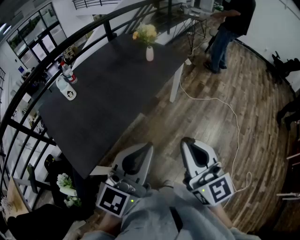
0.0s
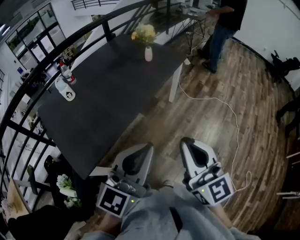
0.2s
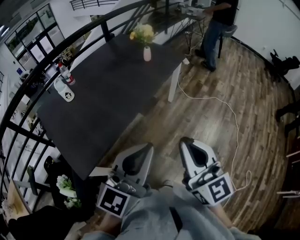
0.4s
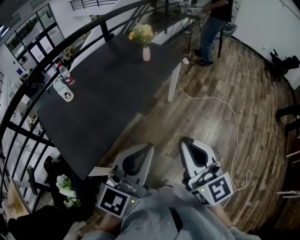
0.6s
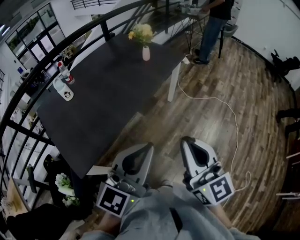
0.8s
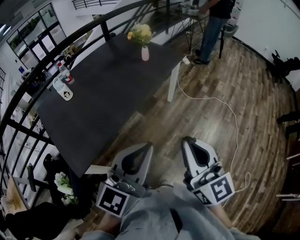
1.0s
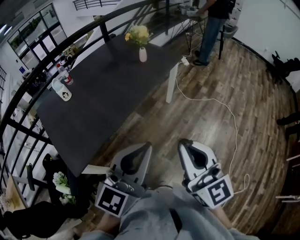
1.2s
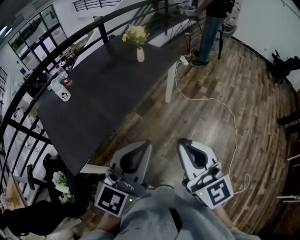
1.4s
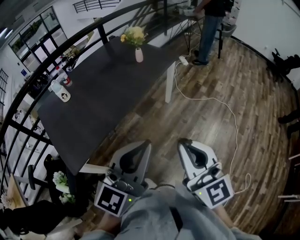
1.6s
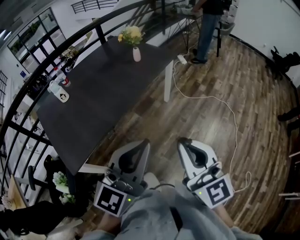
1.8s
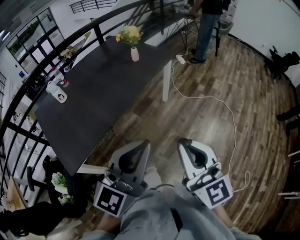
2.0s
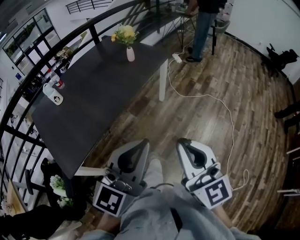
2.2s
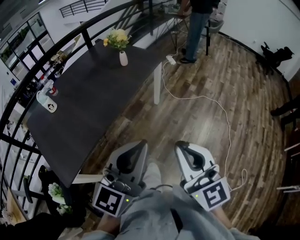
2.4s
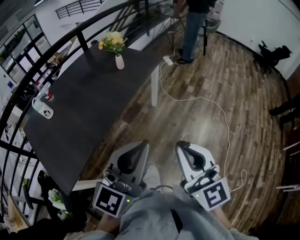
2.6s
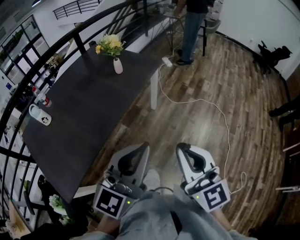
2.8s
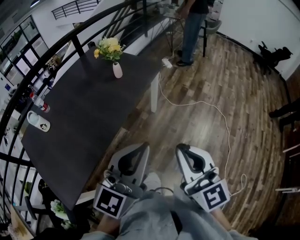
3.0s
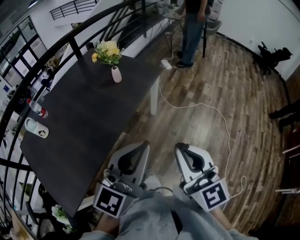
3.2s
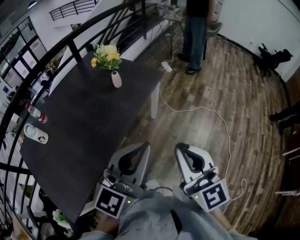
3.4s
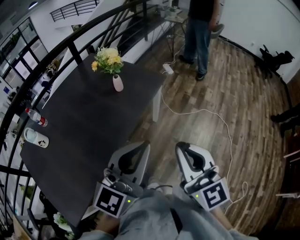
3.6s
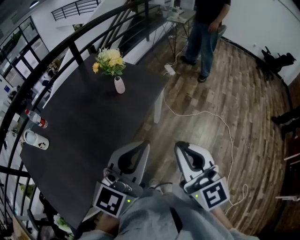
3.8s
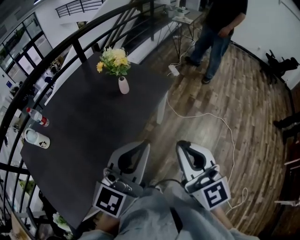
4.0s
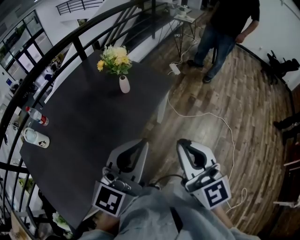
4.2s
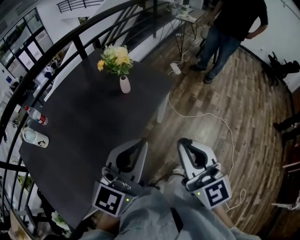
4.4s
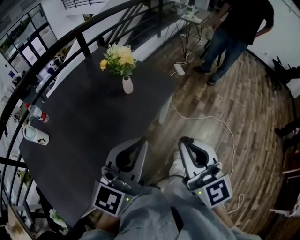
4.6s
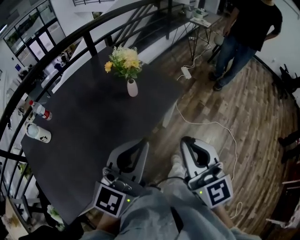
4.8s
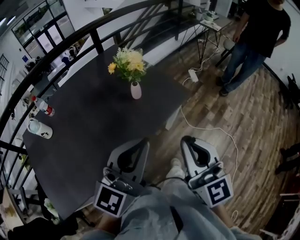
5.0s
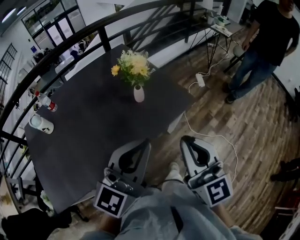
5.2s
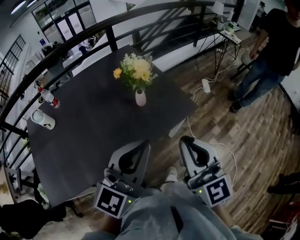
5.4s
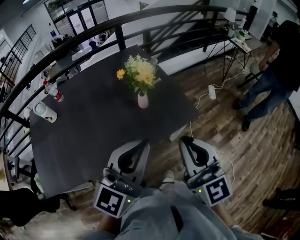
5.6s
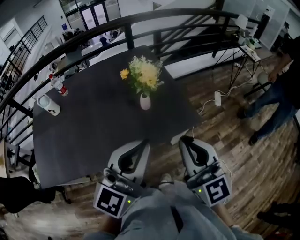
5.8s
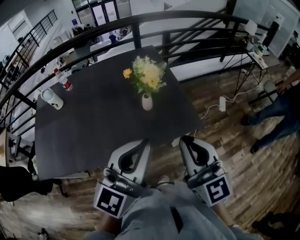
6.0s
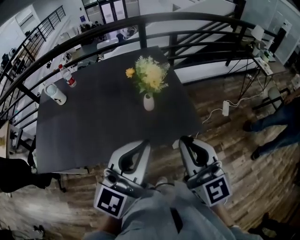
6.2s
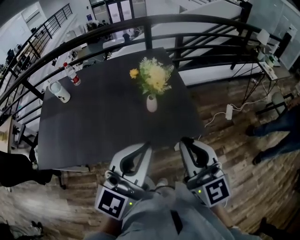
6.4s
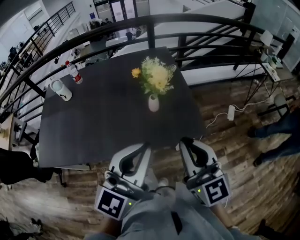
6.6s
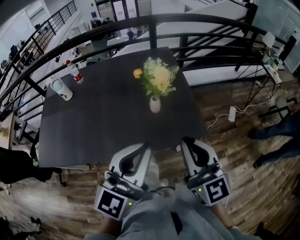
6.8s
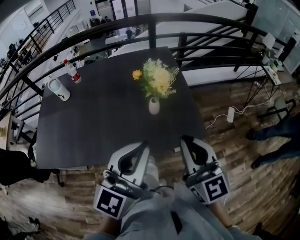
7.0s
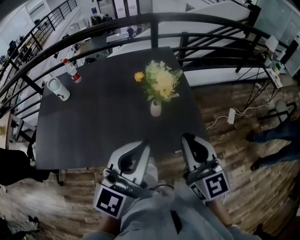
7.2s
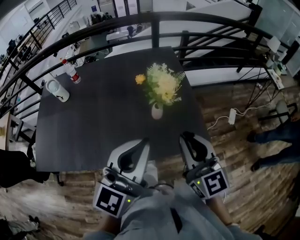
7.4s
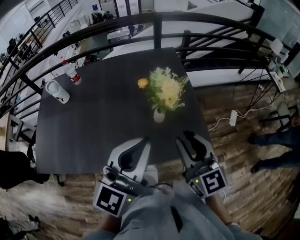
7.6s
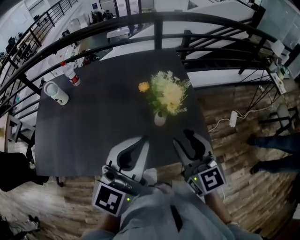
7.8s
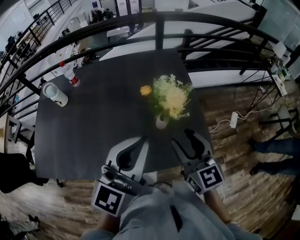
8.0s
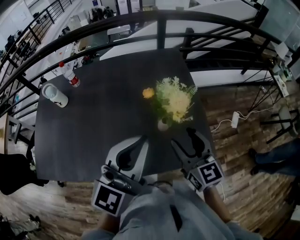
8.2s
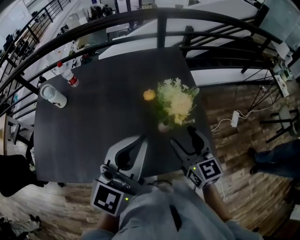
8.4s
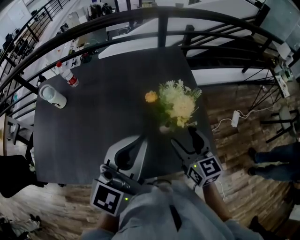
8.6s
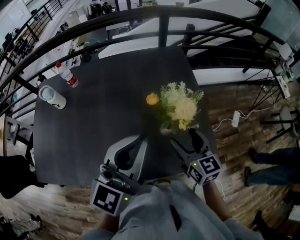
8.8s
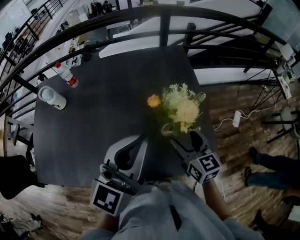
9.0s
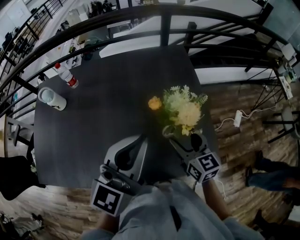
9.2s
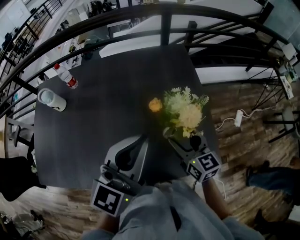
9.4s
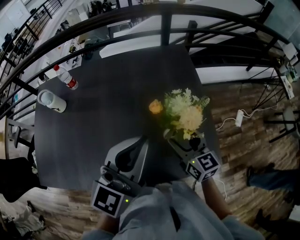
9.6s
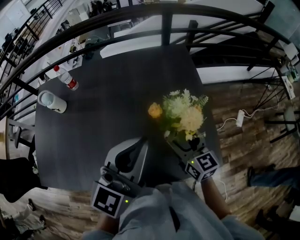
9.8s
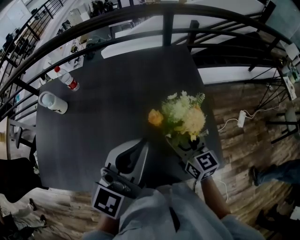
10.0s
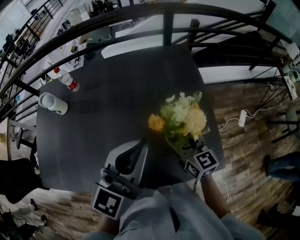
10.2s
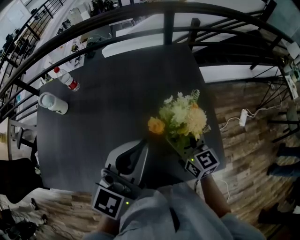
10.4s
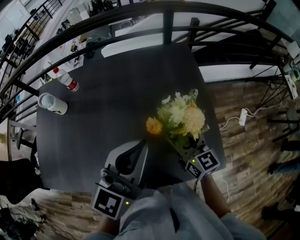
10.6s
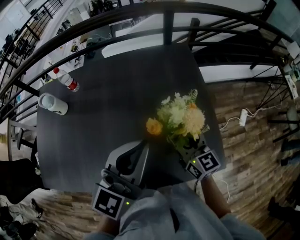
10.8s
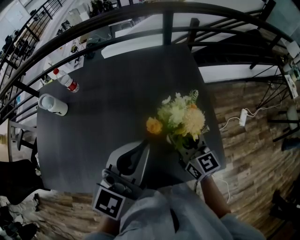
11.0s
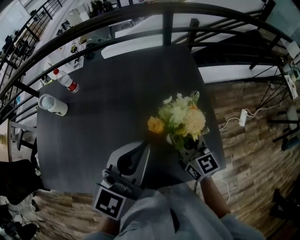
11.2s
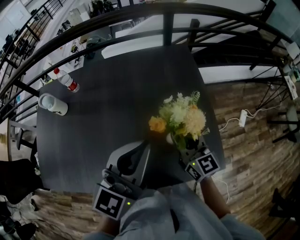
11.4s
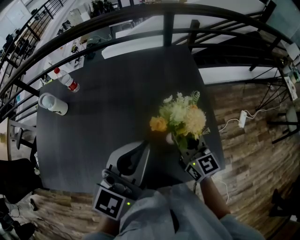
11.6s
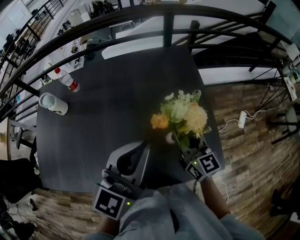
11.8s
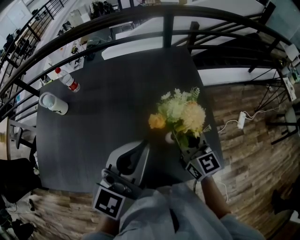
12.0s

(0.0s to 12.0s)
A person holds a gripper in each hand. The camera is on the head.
0.0s - 1.6s: The two grippers go some 10 cm to the right.
1.6s - 3.0s: Both grippers move forward, about 15 cm.
3.0s - 4.4s: Both grippers move forward, approximately 20 cm.
4.4s - 6.0s: The left gripper shifts by approximately 20 cm, and swivels about 40 degrees. Meanwhile the right gripper moves roughly 25 cm, and swivels some 40 degrees.
6.0s - 7.6s: The left gripper heads forward, covering approximately 10 cm, while the right gripper shifts about 15 cm forward and downward.
7.6s - 9.0s: The right gripper is displaced forward and downward by about 15 cm, changes its angle by approximately 20 degrees, and opens up, while the left gripper is displaced forward by about 10 cm.
9.0s - 10.4s: The right gripper moves forward, some 5 cm.
10.4s - 12.0s: The right gripper closes up.

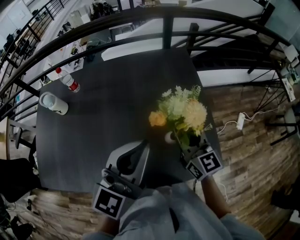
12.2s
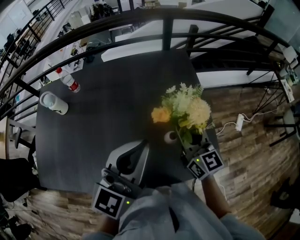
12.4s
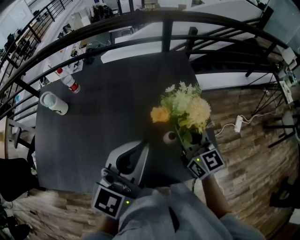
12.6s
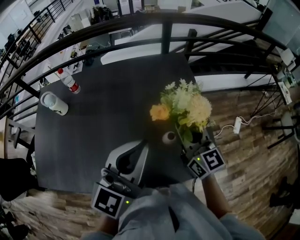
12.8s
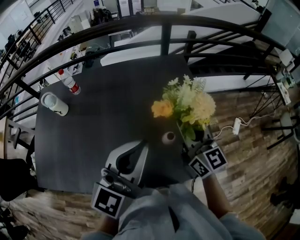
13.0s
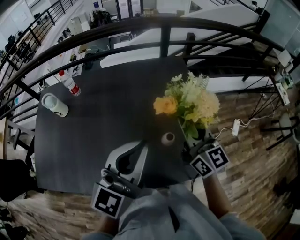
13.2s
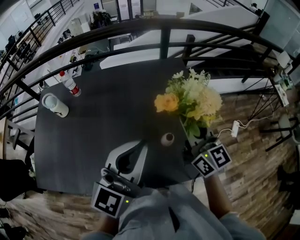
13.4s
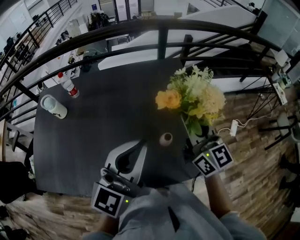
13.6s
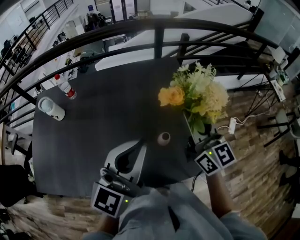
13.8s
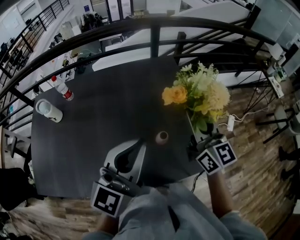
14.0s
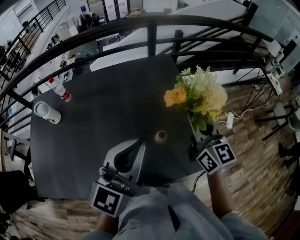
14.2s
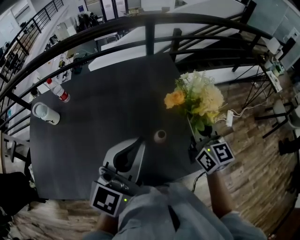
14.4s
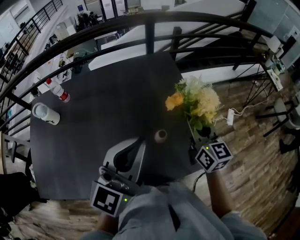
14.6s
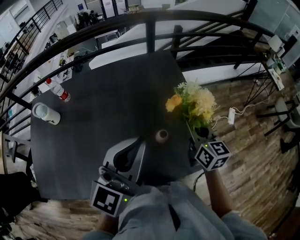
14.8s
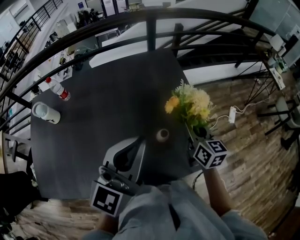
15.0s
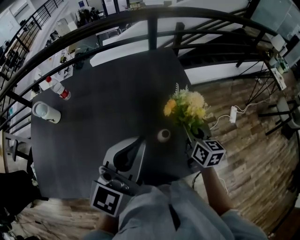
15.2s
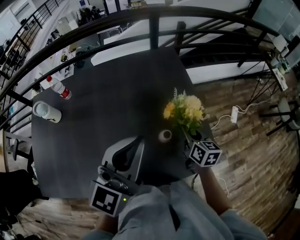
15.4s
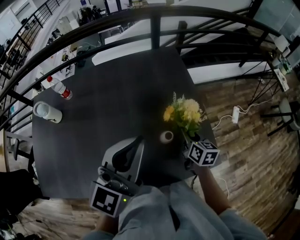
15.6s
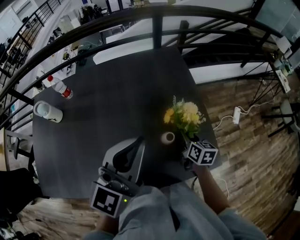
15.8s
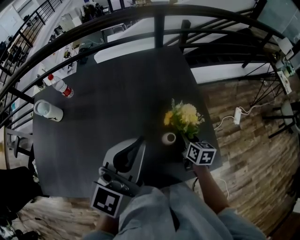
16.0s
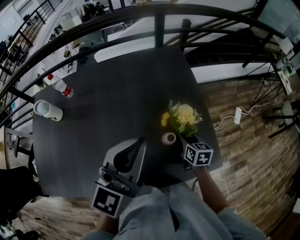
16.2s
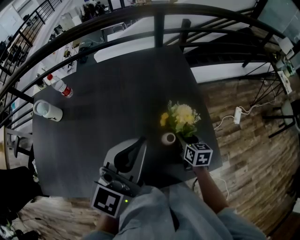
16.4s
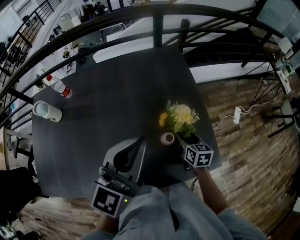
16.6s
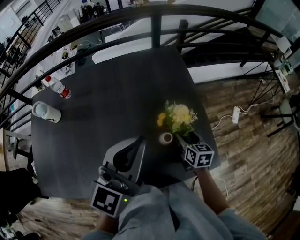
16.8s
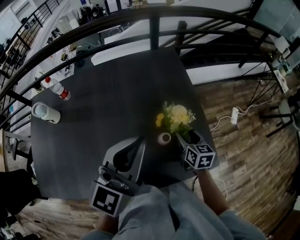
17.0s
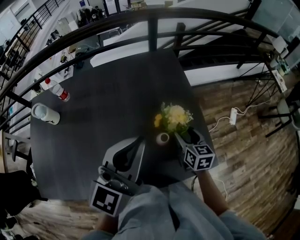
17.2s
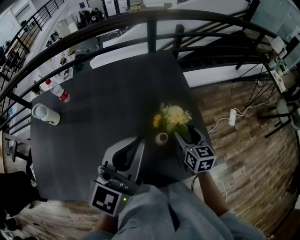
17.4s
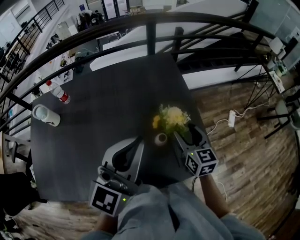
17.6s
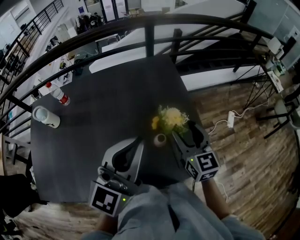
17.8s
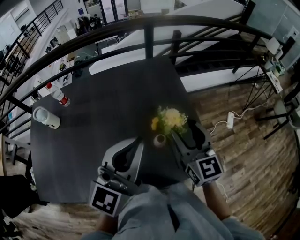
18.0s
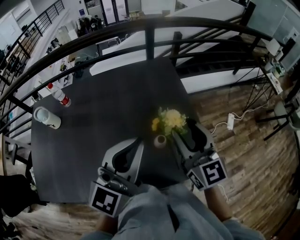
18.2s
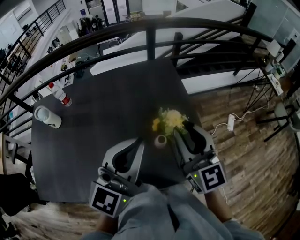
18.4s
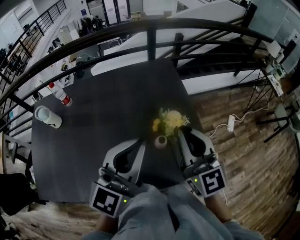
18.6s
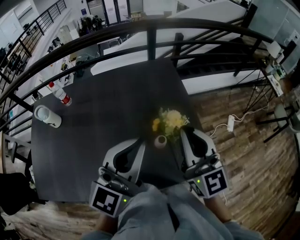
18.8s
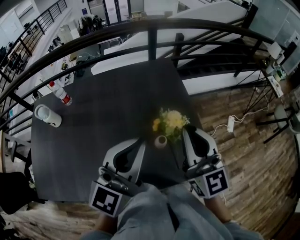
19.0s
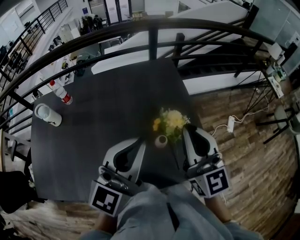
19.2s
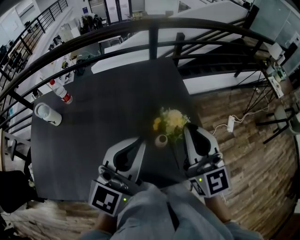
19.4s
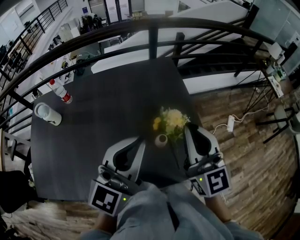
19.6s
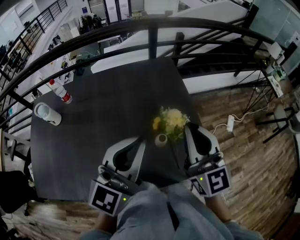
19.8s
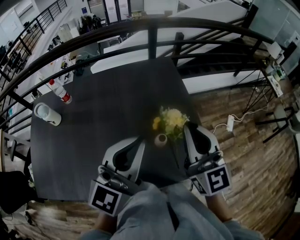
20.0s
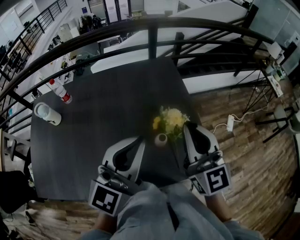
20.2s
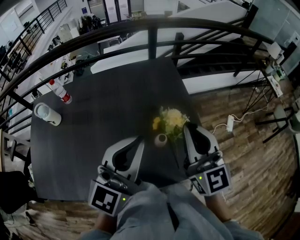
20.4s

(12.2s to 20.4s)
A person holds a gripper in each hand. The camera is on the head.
12.2s - 13.8s: The right gripper travels upward and to the right by approximately 15 cm.
13.8s - 15.4s: The right gripper travels downward by about 20 cm, and angles its fingers downward, by roughly 30 degrees.
15.4s - 17.2s: The right gripper moves some 10 cm downward and comes back, and opens.
17.2s - 18.8s: The right gripper moves upward, about 25 cm, points its fingers about 40 degrees further upward, and closes up.
18.8s - 20.4s: Both grippers stay put.

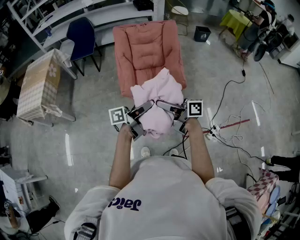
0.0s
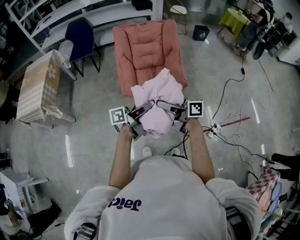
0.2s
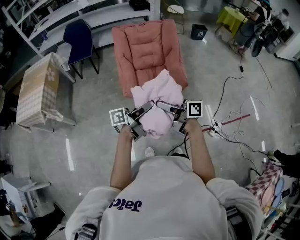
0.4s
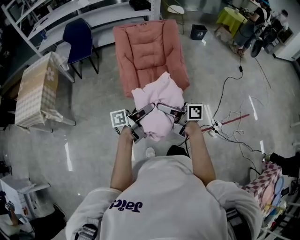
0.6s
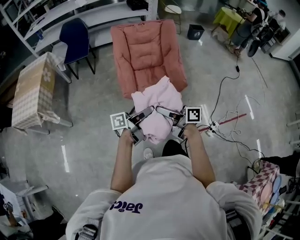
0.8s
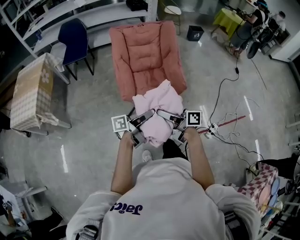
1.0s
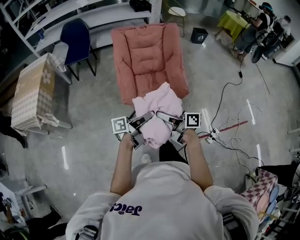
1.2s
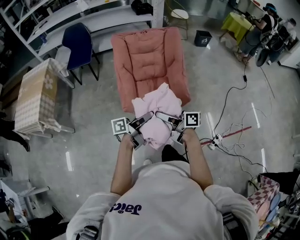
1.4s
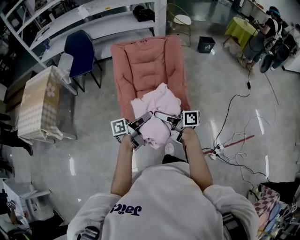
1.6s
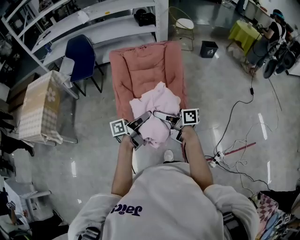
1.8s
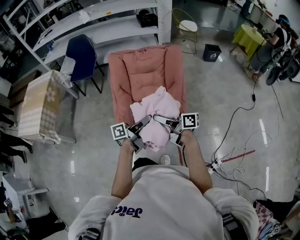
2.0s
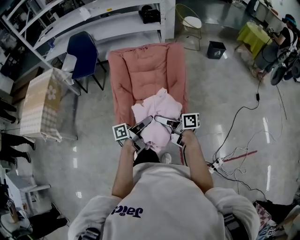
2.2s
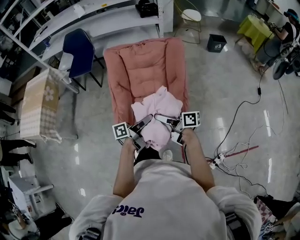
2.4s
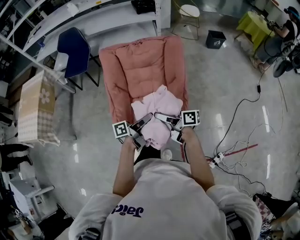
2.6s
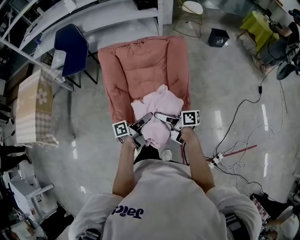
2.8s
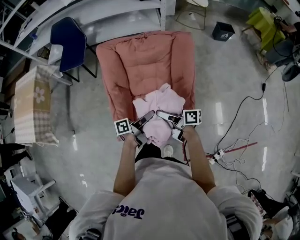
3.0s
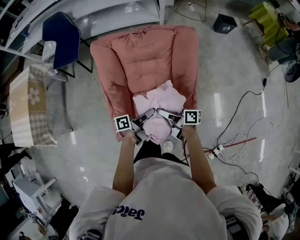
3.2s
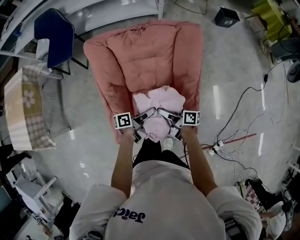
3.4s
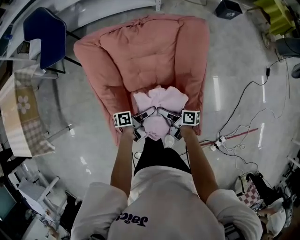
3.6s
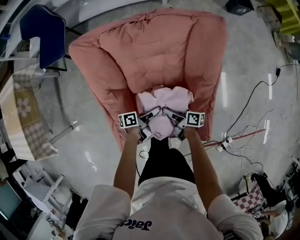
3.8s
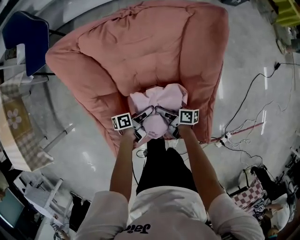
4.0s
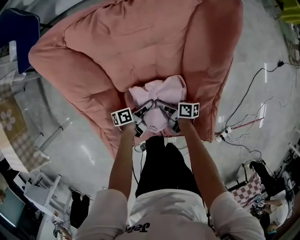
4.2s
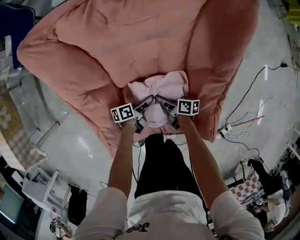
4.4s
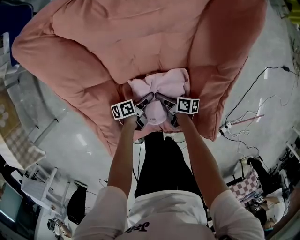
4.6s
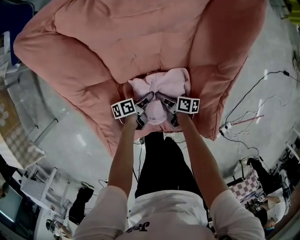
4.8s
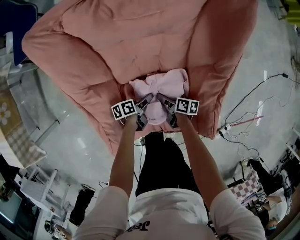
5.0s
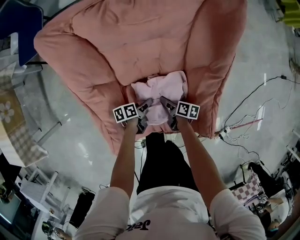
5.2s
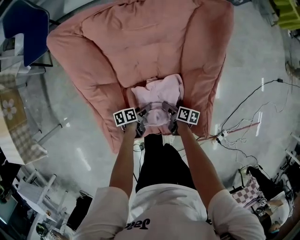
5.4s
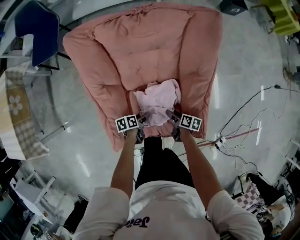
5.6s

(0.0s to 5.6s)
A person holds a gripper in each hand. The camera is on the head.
0.0s - 1.4s: The right gripper shifts by some 10 cm.
1.4s - 2.8s: The right gripper ends up roughly 35 cm from where it was.
2.8s - 4.2s: The right gripper heads downward, covering approximately 40 cm, and swivels approximately 30 degrees.
4.2s - 5.6s: The right gripper shifts by about 10 cm, and swivels approximately 20 degrees.
